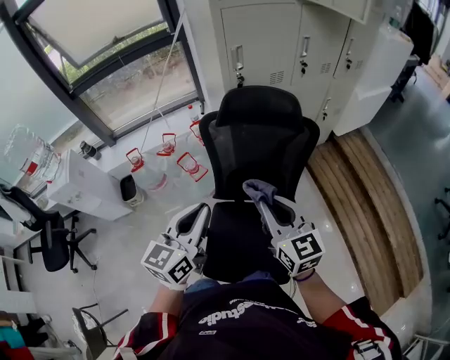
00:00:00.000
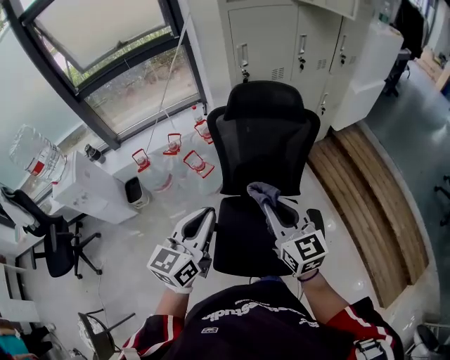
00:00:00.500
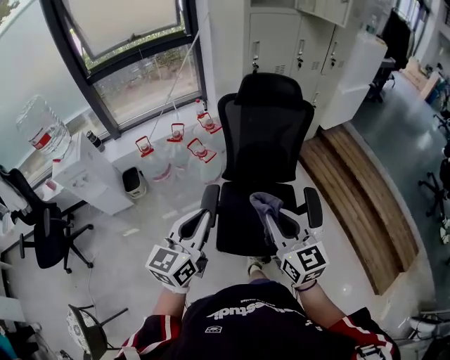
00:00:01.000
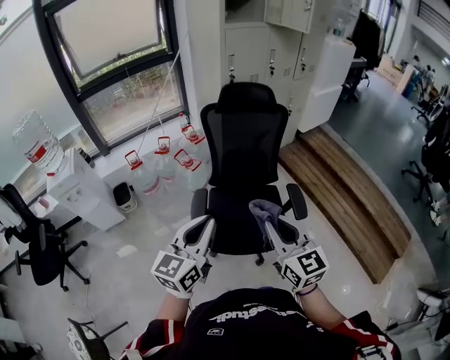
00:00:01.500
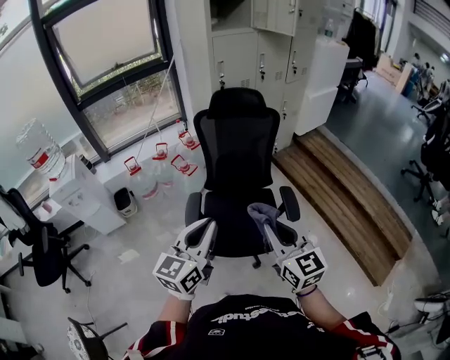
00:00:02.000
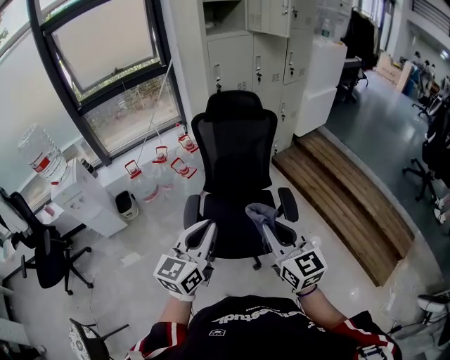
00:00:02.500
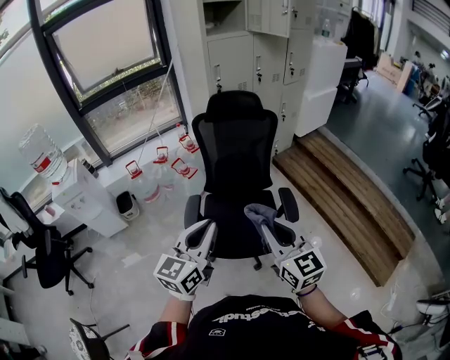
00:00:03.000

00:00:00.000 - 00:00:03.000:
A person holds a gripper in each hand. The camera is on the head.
00:00:00.000 - 00:00:01.500: The grippers both shift backward by roughly 40 cm.
00:00:01.500 - 00:00:03.000: Both grippers travel together to the right, about 10 cm.

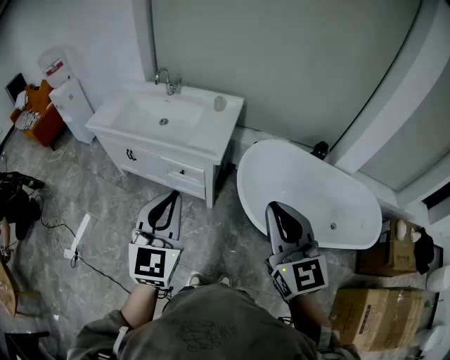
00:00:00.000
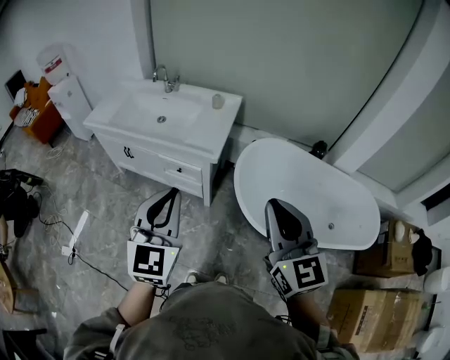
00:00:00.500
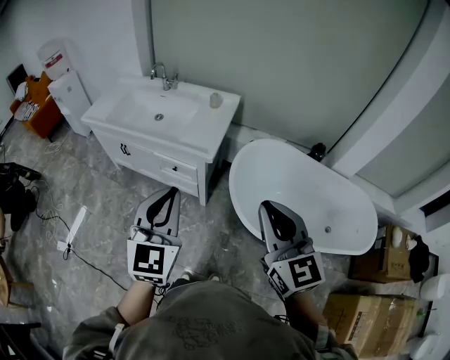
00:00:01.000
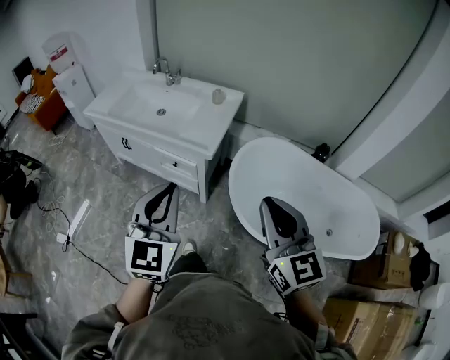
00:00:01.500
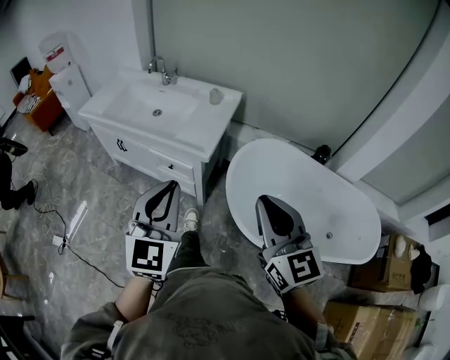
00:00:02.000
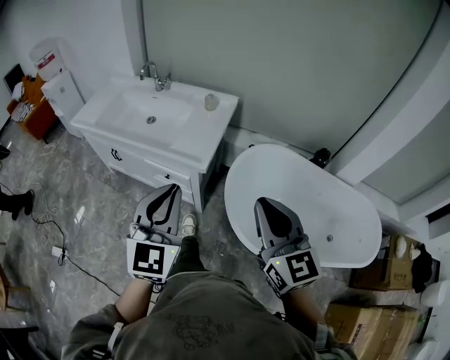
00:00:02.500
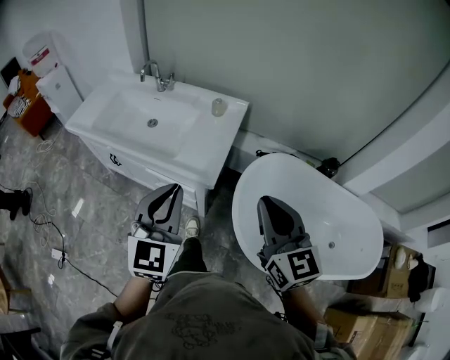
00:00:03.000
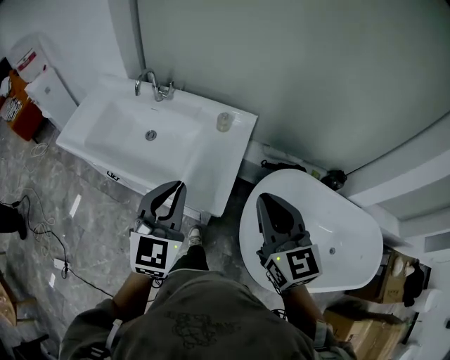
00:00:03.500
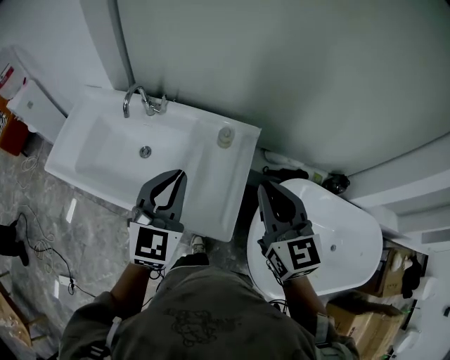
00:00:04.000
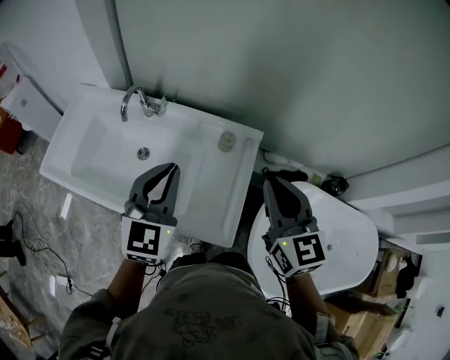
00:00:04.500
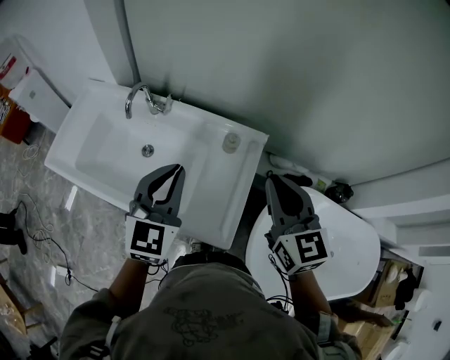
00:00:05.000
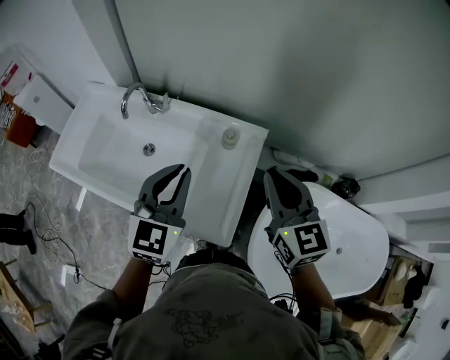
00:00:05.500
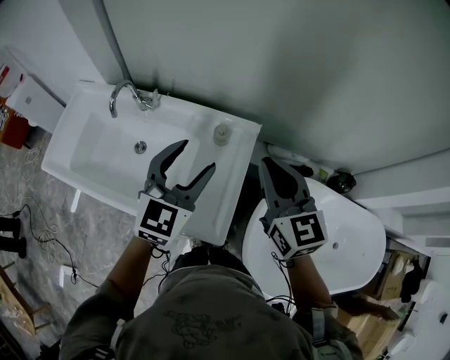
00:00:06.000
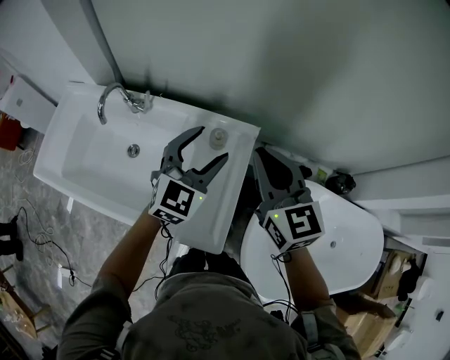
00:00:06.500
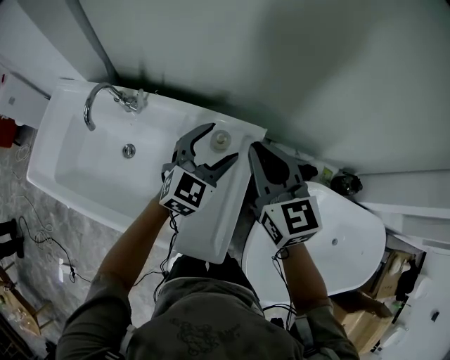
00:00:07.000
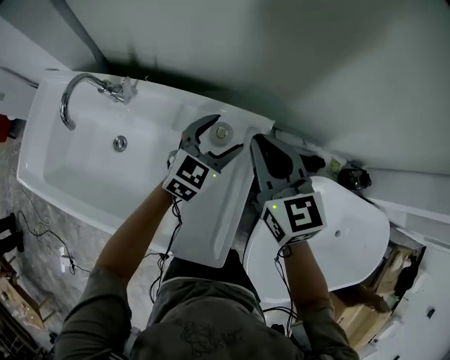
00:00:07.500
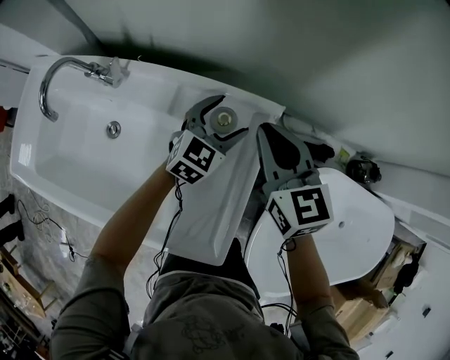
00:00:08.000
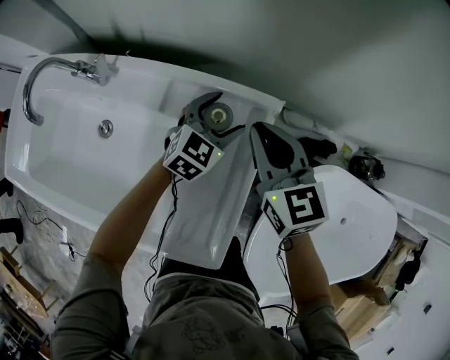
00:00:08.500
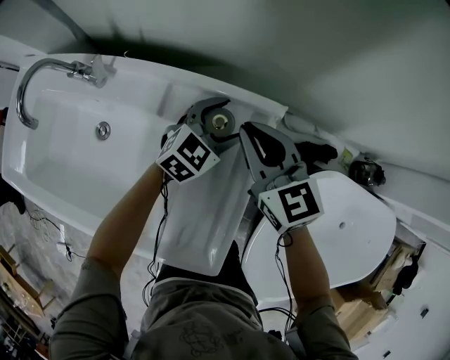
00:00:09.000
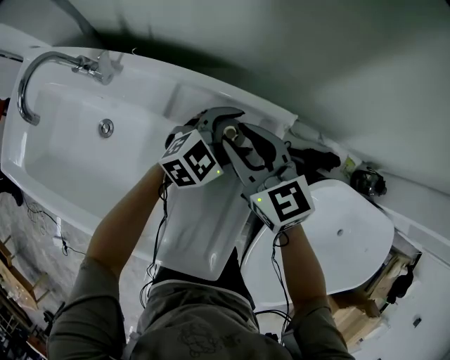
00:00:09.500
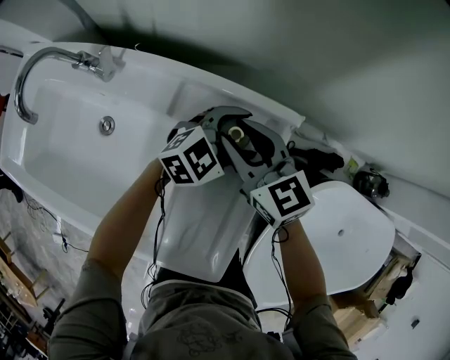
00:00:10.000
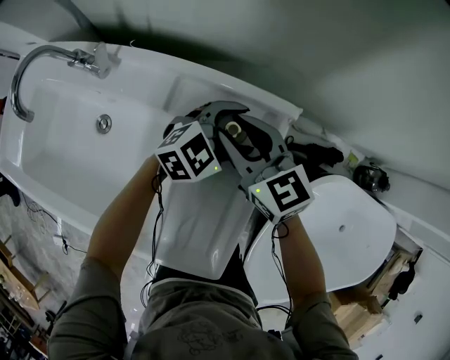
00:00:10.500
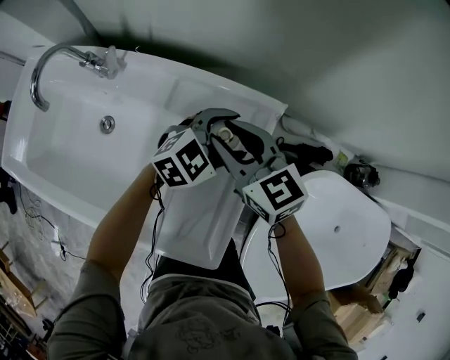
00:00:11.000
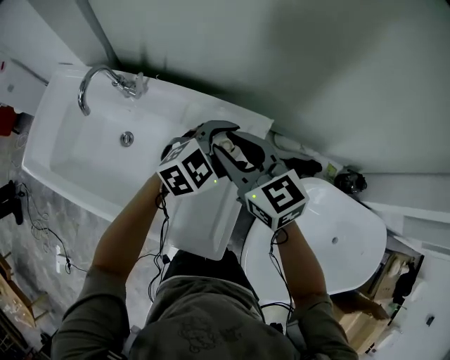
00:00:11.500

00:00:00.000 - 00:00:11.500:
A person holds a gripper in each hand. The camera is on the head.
00:00:00.000 - 00:00:02.000: The left gripper moves to the right and forward, roughly 10 cm. Meanwhile the right gripper is displaced forward, to the right and downward by roughly 10 cm.
00:00:02.000 - 00:00:04.000: The pair of grippers is taken forward, about 50 cm.
00:00:04.000 - 00:00:06.000: The right gripper heads forward, covering approximately 10 cm. Meanwhile the left gripper is displaced forward and to the right by roughly 10 cm, and opens its fingers.
00:00:06.000 - 00:00:07.500: The right gripper moves forward and downward, roughly 20 cm. The left gripper shifts approximately 30 cm downward and forward.
00:00:07.500 - 00:00:09.500: The two grippers go approximately 10 cm downward. The right gripper opens its fingers. The left gripper changes its angle by roughly 20 degrees.
00:00:09.500 - 00:00:11.500: The grippers both shift upward and backward by about 15 cm.

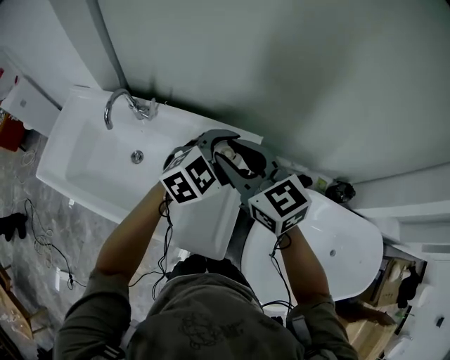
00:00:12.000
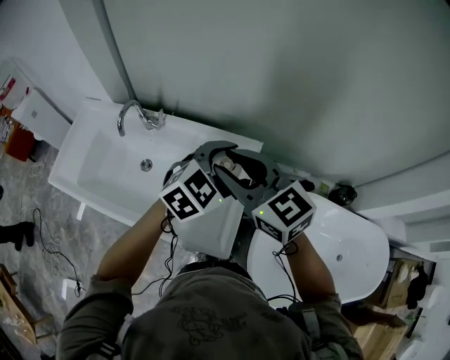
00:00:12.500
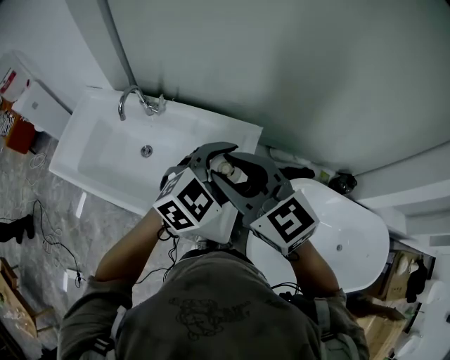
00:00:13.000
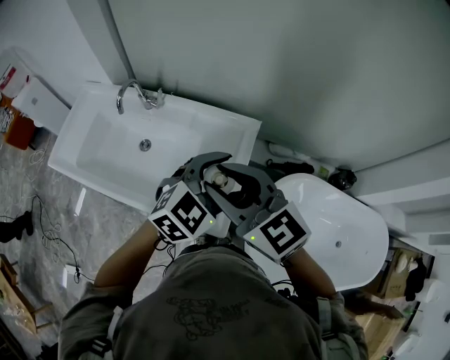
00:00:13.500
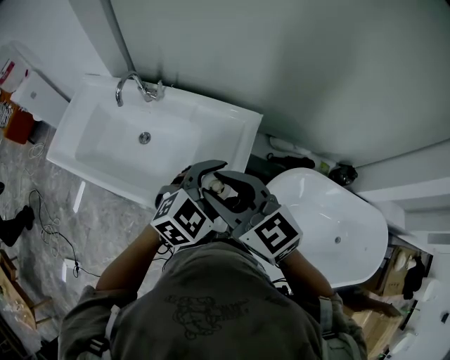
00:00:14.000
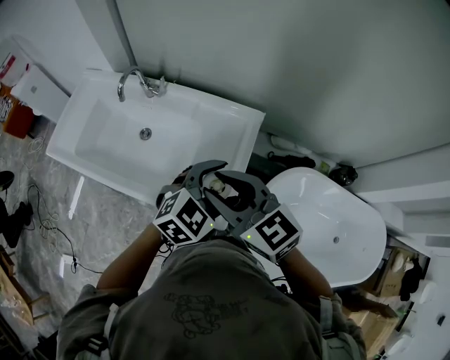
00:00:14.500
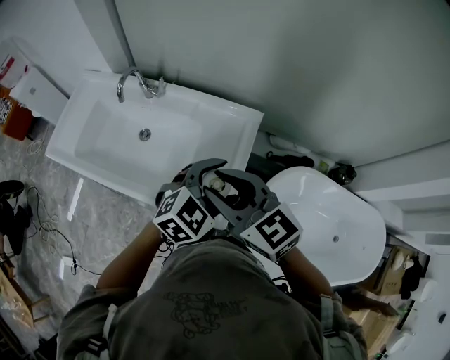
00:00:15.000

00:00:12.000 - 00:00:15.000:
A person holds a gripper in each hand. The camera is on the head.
00:00:12.000 - 00:00:13.500: The grippers both shift backward by roughly 15 cm.
00:00:13.500 - 00:00:15.000: The right gripper changes place by about 5 cm. The left gripper ends up some 5 cm from where it was.

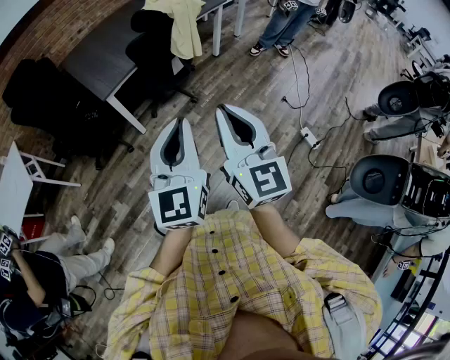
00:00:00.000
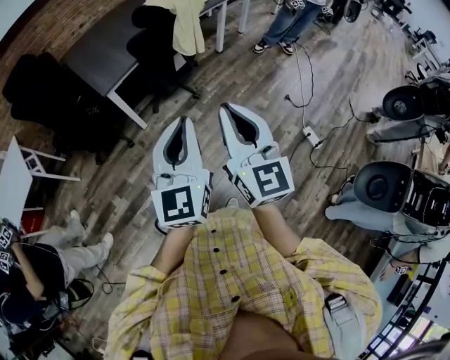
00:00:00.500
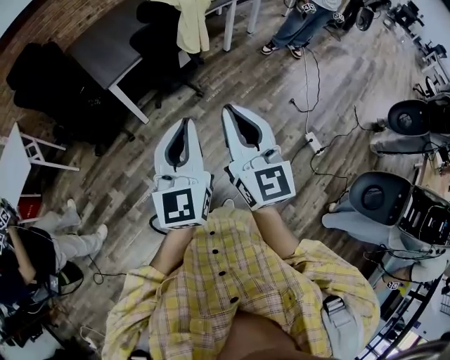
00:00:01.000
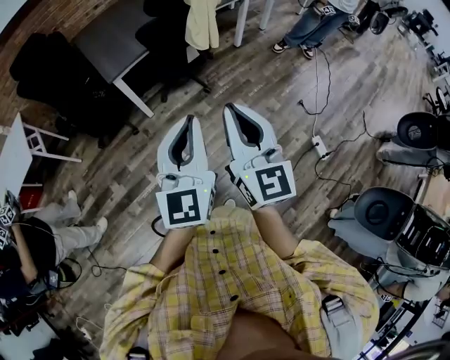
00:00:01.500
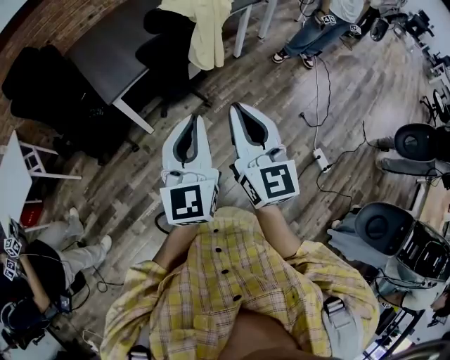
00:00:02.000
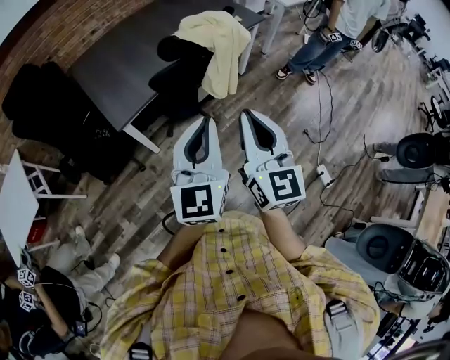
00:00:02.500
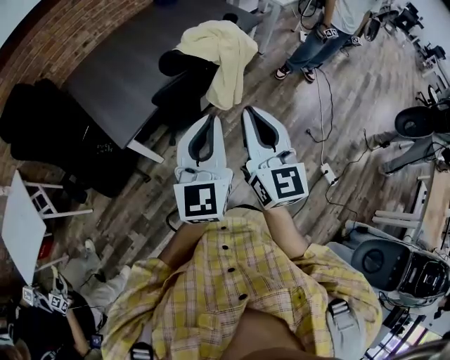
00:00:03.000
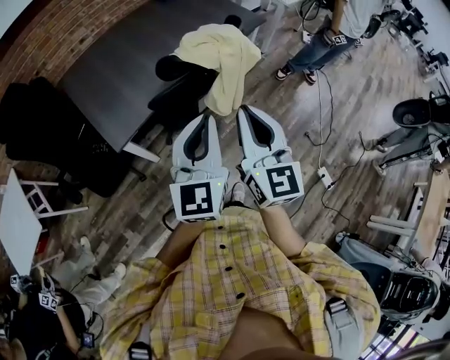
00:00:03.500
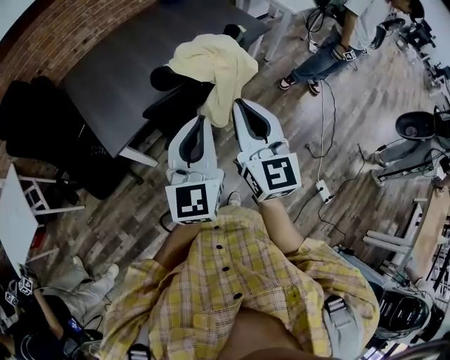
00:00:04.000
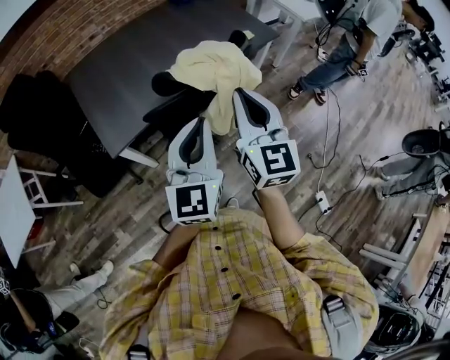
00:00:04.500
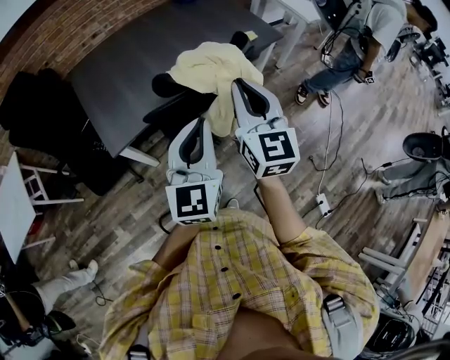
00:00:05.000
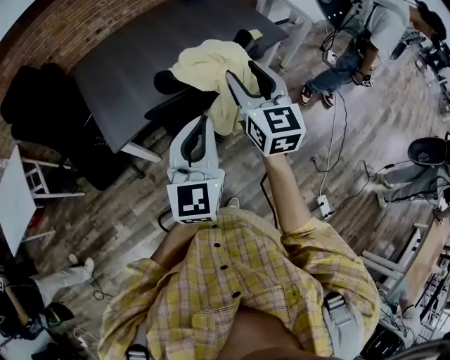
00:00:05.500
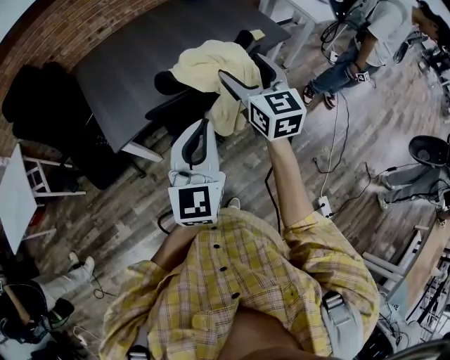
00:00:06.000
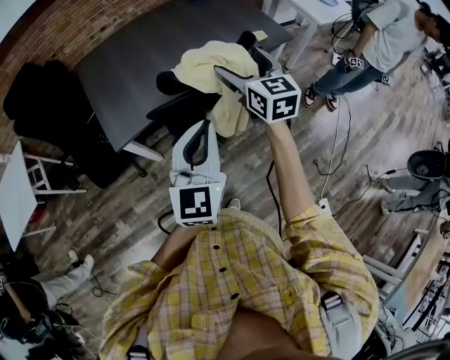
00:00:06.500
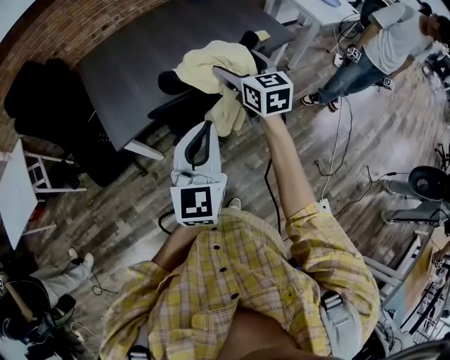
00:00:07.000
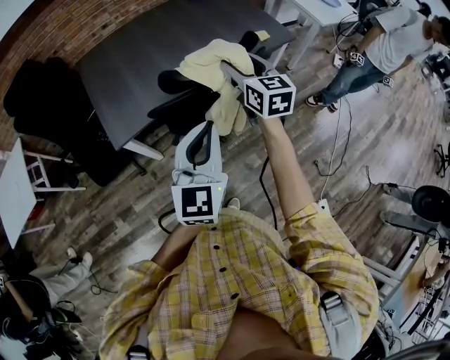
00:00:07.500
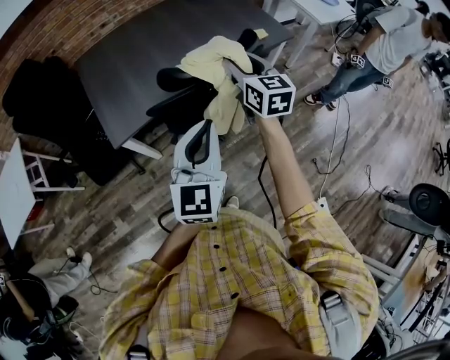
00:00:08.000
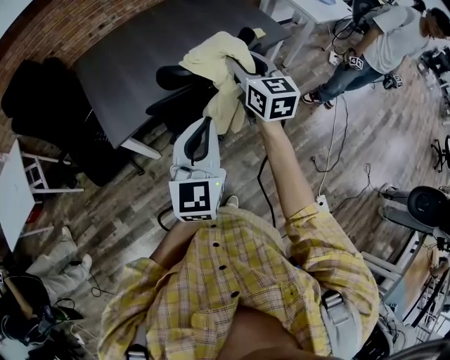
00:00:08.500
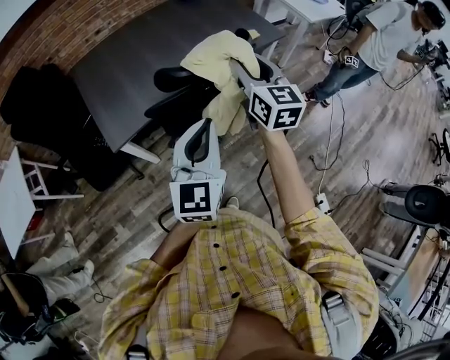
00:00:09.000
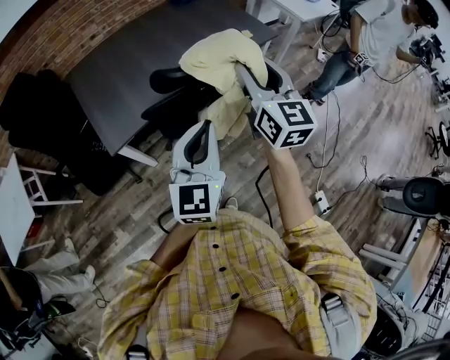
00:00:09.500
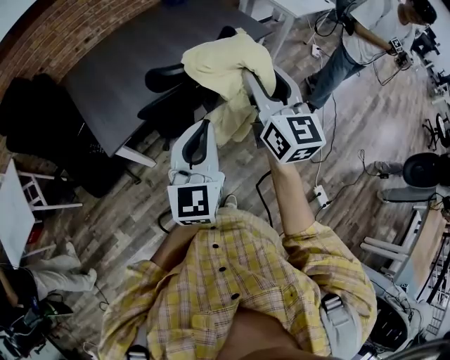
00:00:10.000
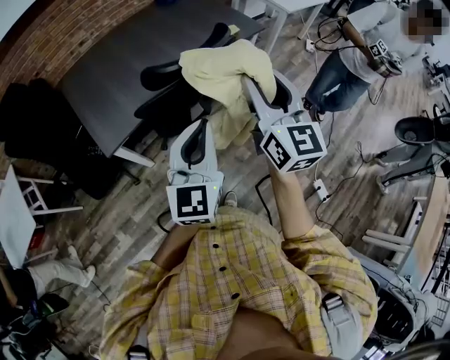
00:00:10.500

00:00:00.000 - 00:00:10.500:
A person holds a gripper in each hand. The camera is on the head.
00:00:00.000 - 00:00:02.000: Both grippers move forward, approximately 20 cm.
00:00:02.000 - 00:00:04.000: The grippers both shift forward by about 30 cm.
00:00:04.000 - 00:00:06.500: The right gripper travels forward by some 20 cm, turns by approximately 20 degrees, and opens up; the left gripper shifts by approximately 5 cm.
00:00:06.500 - 00:00:08.500: The right gripper closes up.
00:00:08.500 - 00:00:10.500: The left gripper moves some 5 cm, while the right gripper shifts about 20 cm backward and upward.
